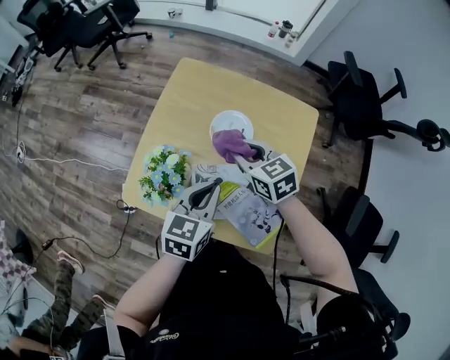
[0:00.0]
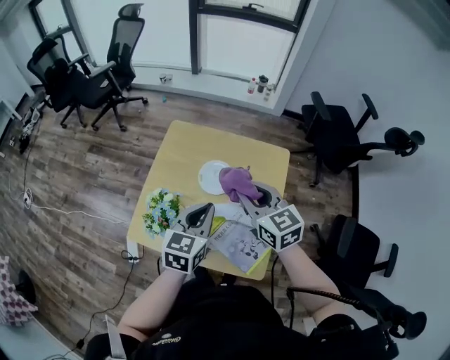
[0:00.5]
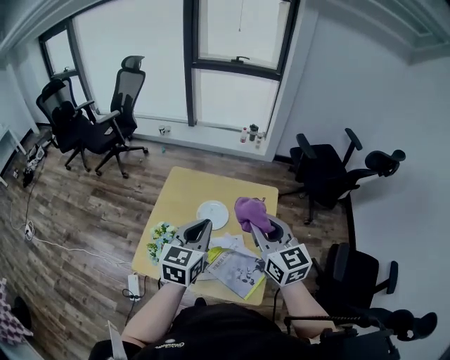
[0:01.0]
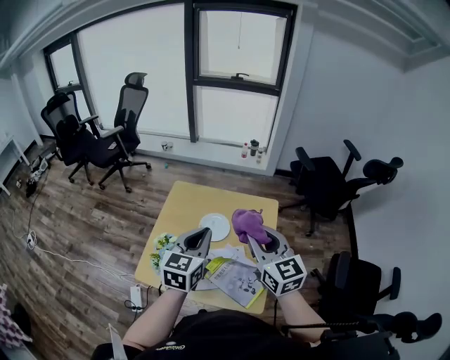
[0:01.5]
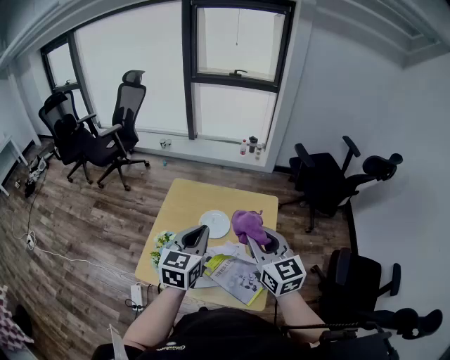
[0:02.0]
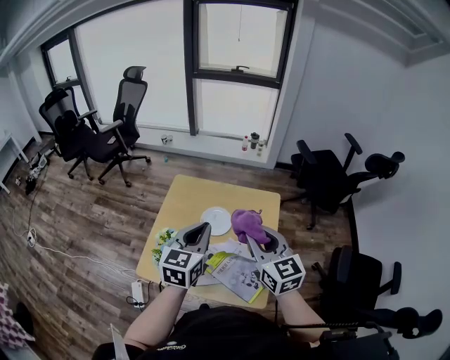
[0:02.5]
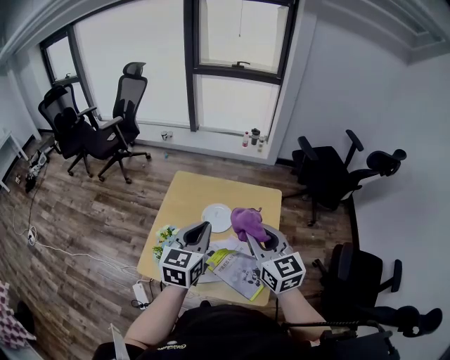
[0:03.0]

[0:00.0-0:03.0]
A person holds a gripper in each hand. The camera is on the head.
0:00.0 to 0:01.5: The left gripper heads upward, covering roughly 20 cm. The right gripper goes roughly 30 cm upward and backward, and rotates approximately 40 degrees.
0:01.5 to 0:03.0: The grippers stay close to where they were, moving slightly.

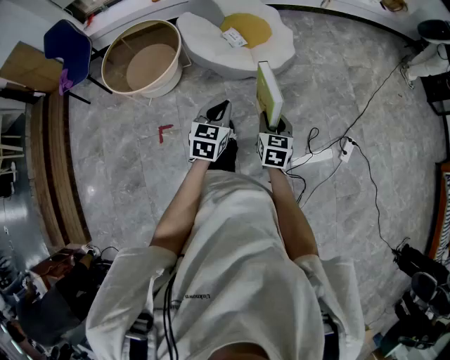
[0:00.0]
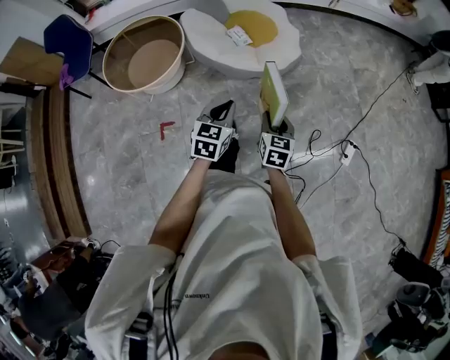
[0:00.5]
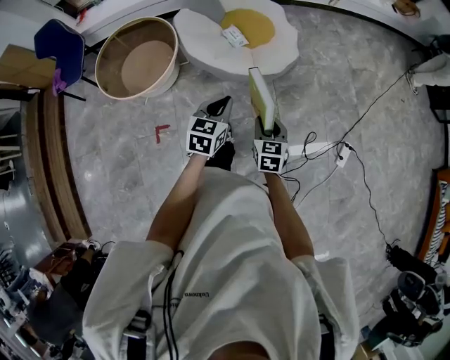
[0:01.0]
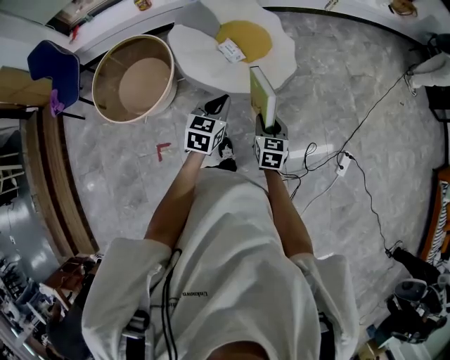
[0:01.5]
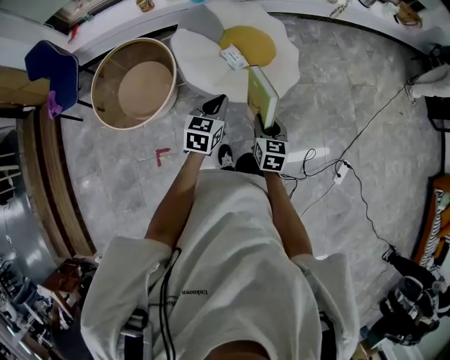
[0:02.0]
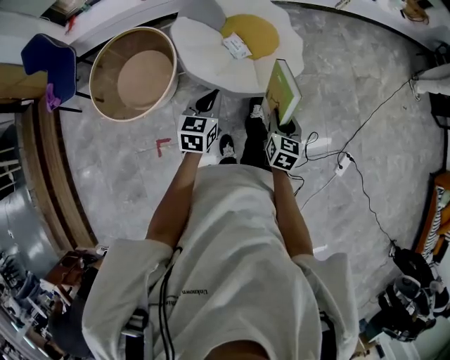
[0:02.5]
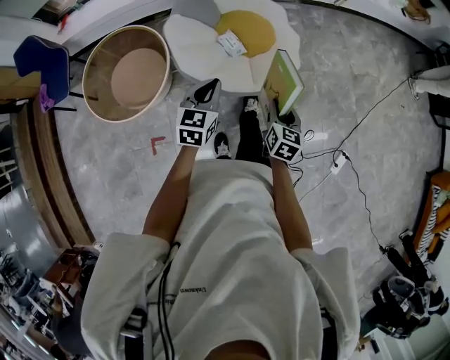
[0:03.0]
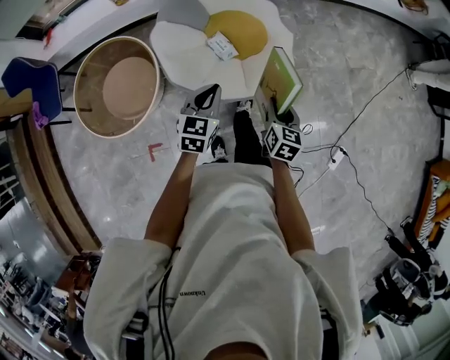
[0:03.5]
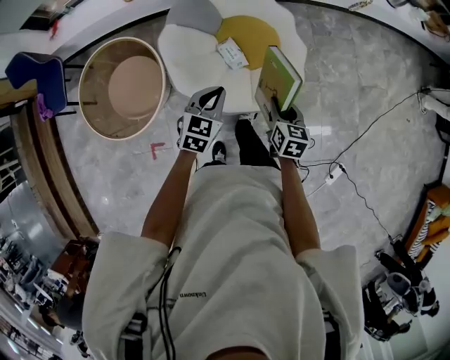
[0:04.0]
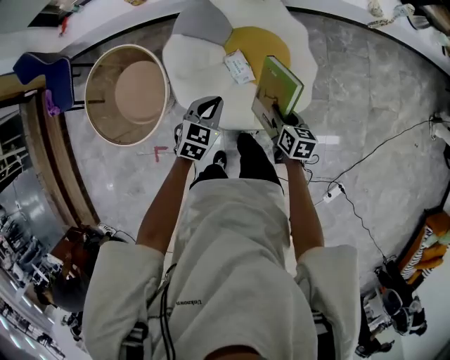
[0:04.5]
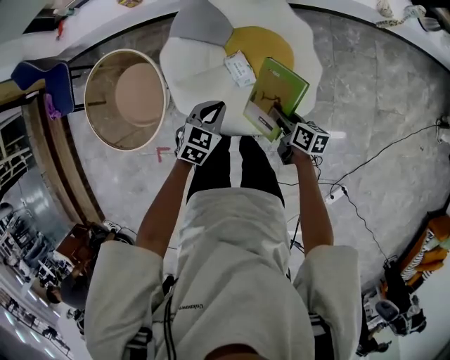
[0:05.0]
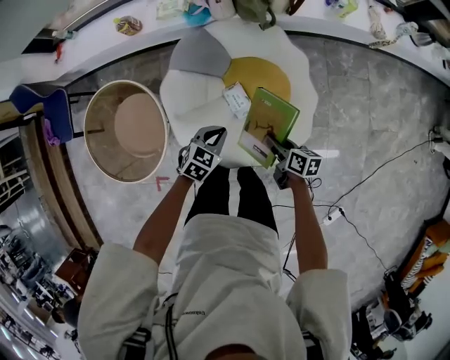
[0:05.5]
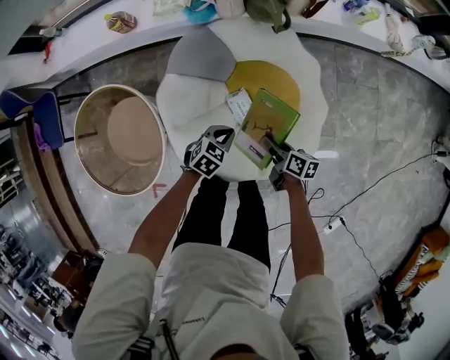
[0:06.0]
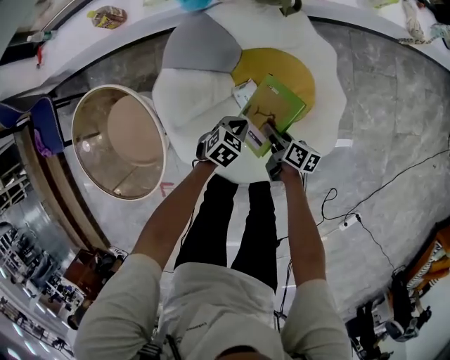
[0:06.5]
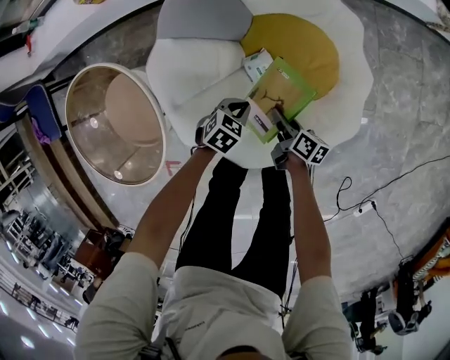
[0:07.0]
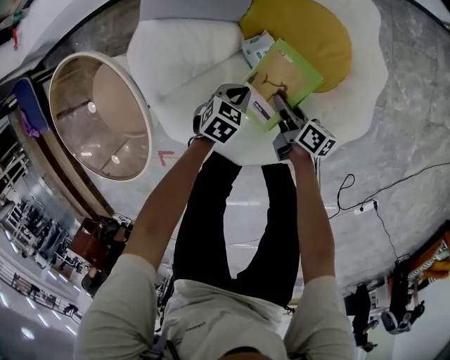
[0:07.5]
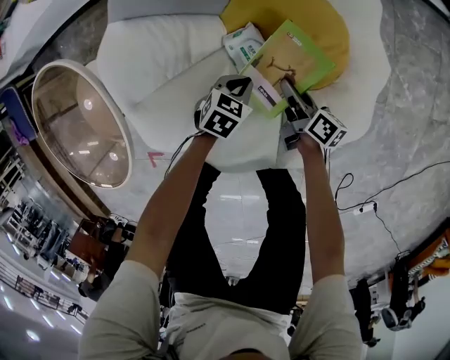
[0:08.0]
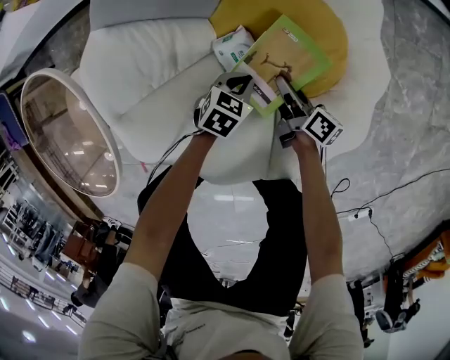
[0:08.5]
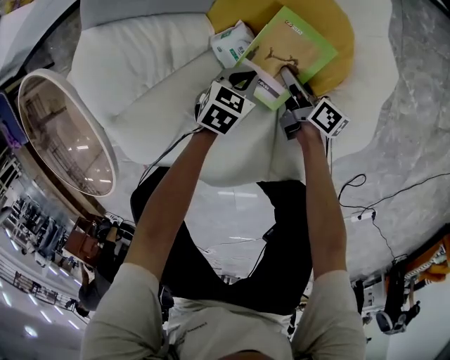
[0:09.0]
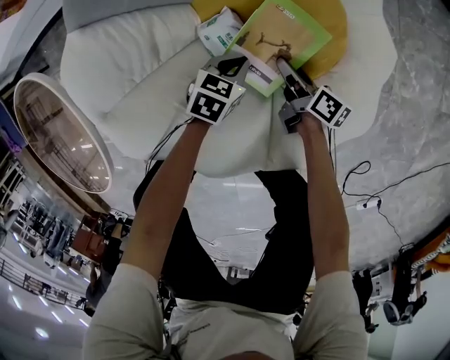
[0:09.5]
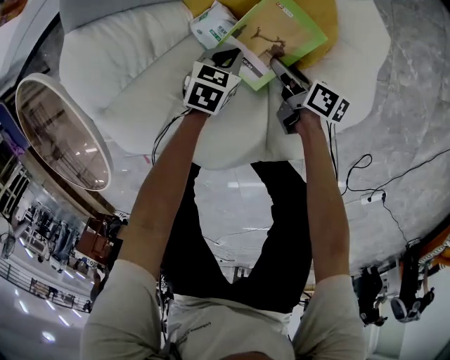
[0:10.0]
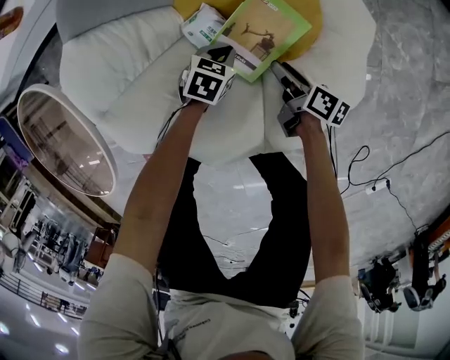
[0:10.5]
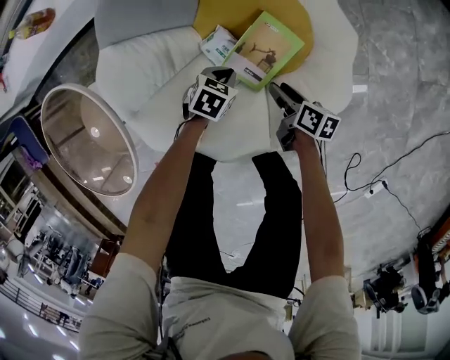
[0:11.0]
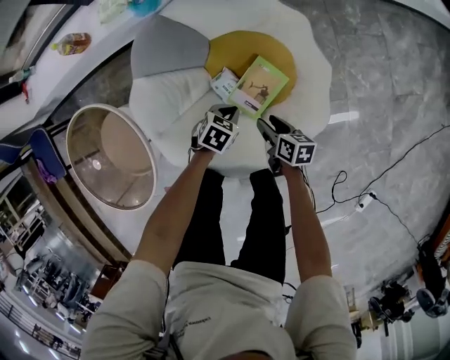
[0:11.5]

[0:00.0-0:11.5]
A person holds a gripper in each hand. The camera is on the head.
0:00.0 to 0:02.0: Both grippers move forward, approximately 30 cm.
0:02.0 to 0:04.0: Both grippers travel together forward, about 25 cm.
0:04.0 to 0:06.0: Both grippers move downward and forward, roughly 30 cm. The left gripper rotates about 30 degrees, while the right gripper changes its angle by roughly 40 degrees.
0:06.0 to 0:07.5: The two grippers go approximately 25 cm downward.
0:07.5 to 0:09.5: The two grippers go roughly 15 cm downward, to the right and forward.
0:09.5 to 0:11.5: The two grippers go approximately 25 cm upward. The right gripper rotates approximately 30 degrees.

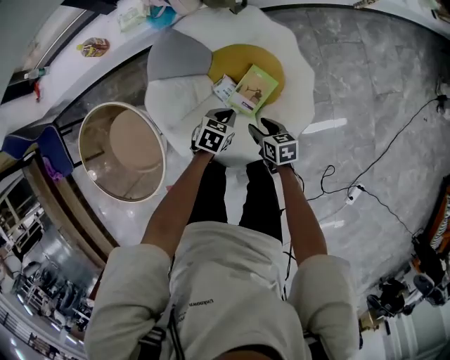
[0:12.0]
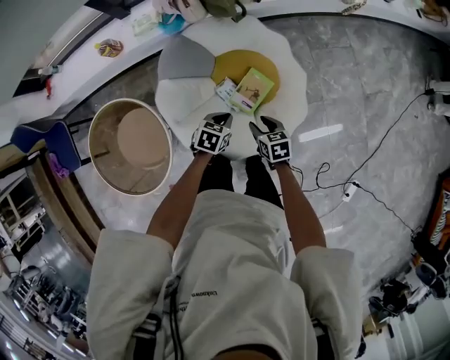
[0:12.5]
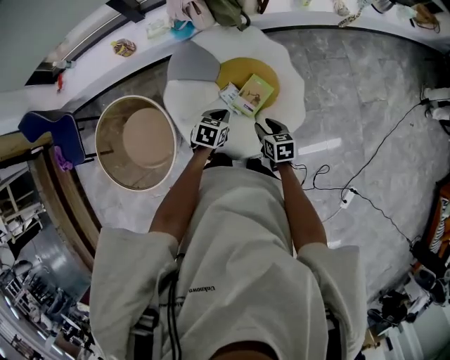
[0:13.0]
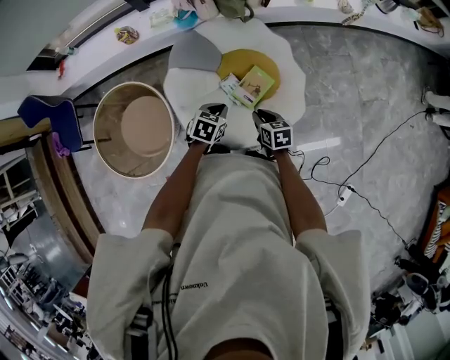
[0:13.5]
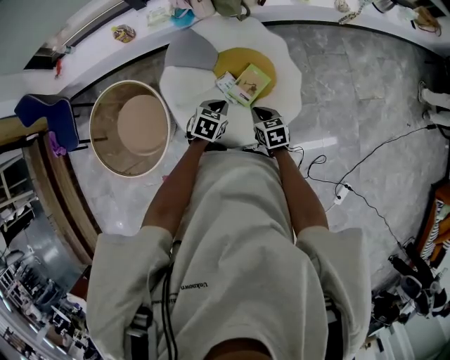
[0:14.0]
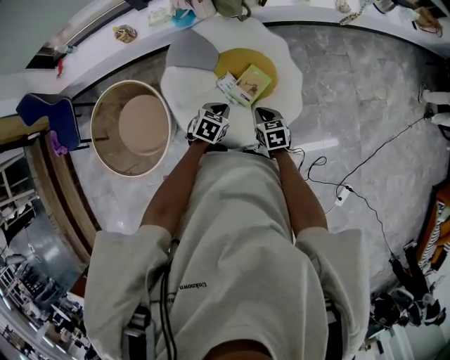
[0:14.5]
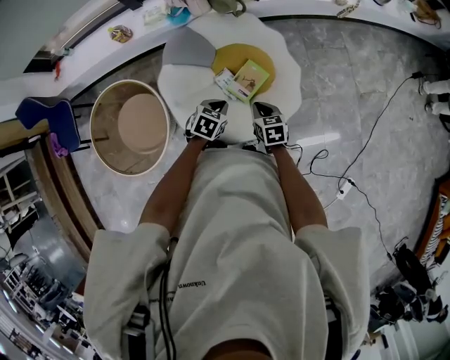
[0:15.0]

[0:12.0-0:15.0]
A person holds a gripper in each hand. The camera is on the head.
0:12.0 to 0:13.5: Both grippers move upward and backward, roughly 15 cm. The right gripper closes up.
0:13.5 to 0:15.0: The grippers move only a little.

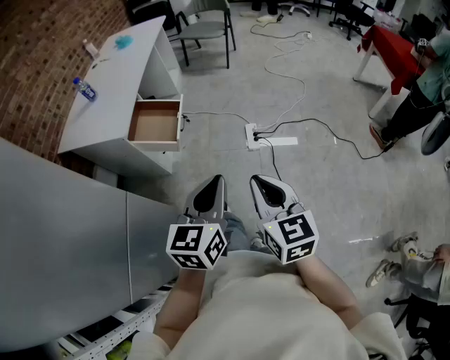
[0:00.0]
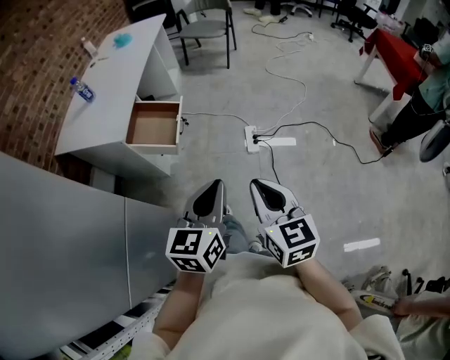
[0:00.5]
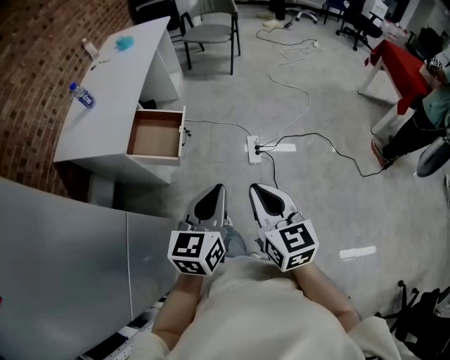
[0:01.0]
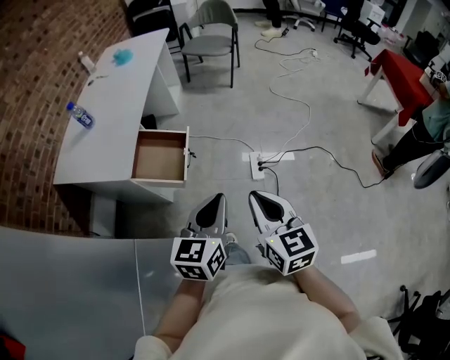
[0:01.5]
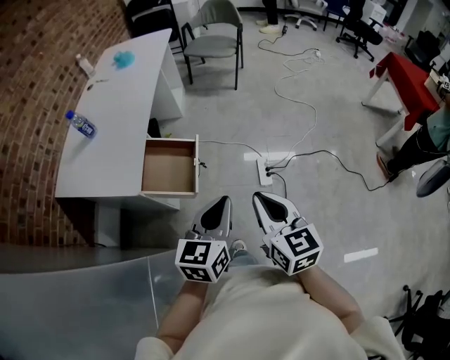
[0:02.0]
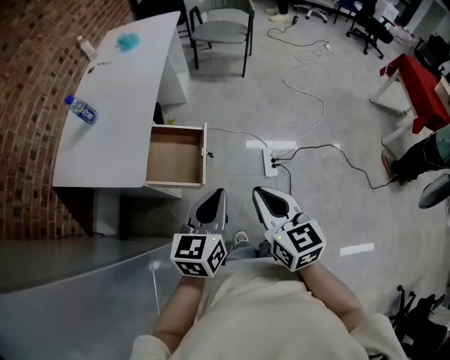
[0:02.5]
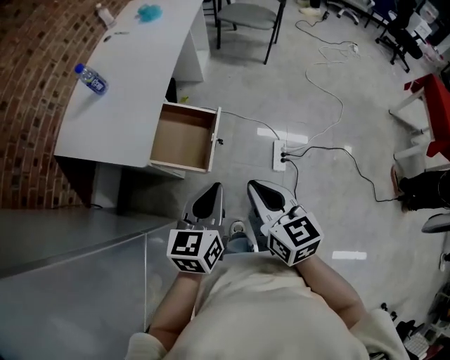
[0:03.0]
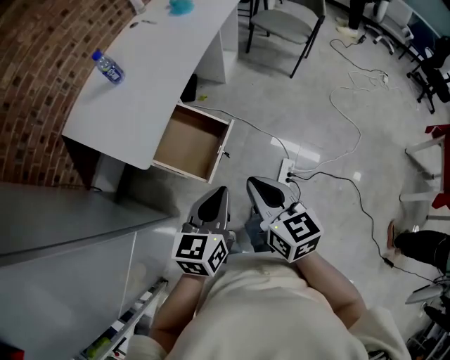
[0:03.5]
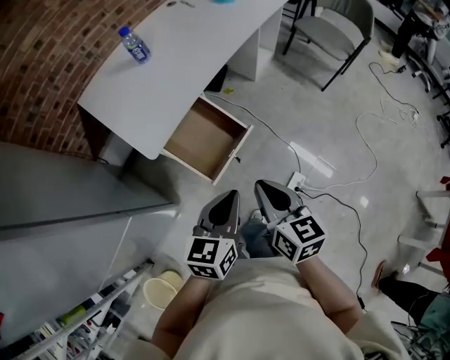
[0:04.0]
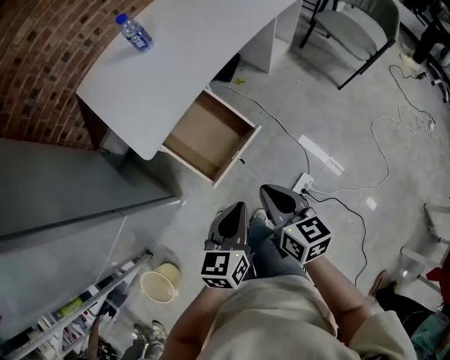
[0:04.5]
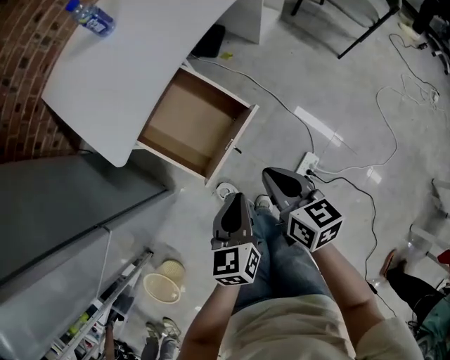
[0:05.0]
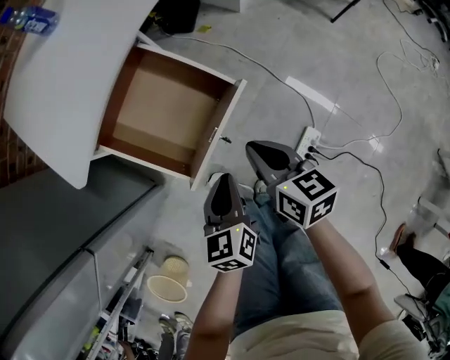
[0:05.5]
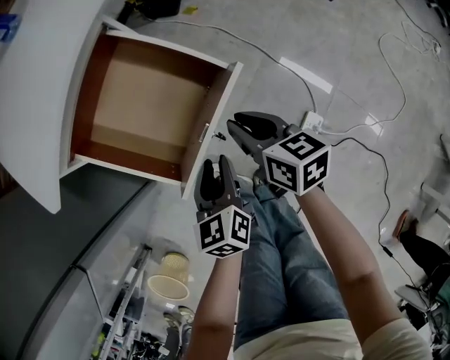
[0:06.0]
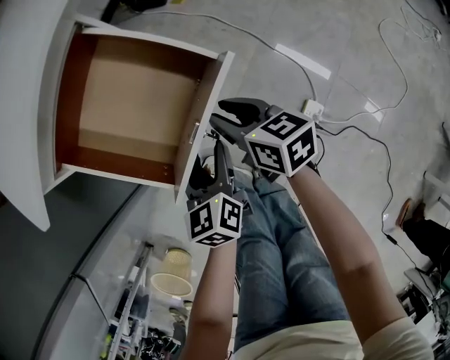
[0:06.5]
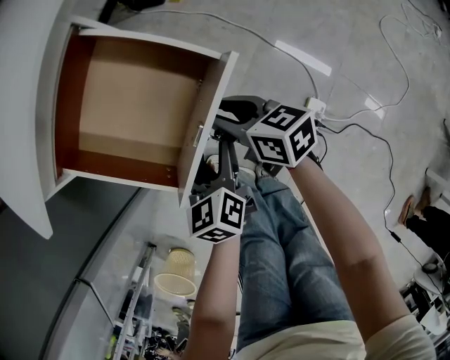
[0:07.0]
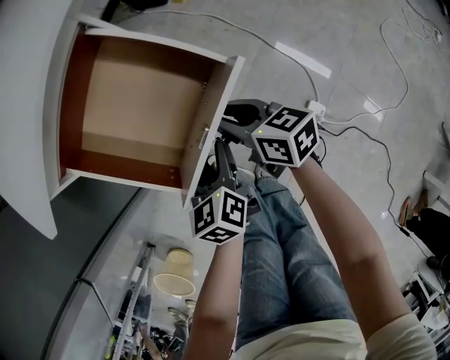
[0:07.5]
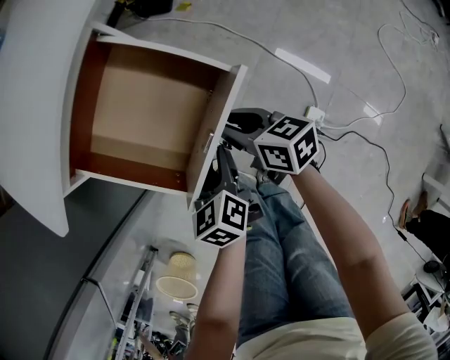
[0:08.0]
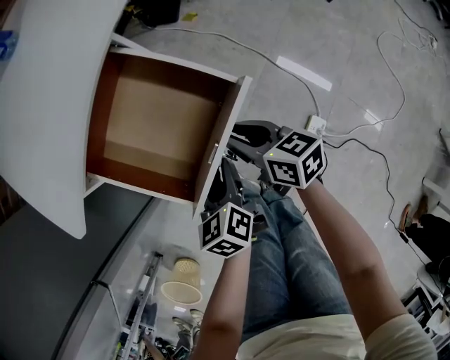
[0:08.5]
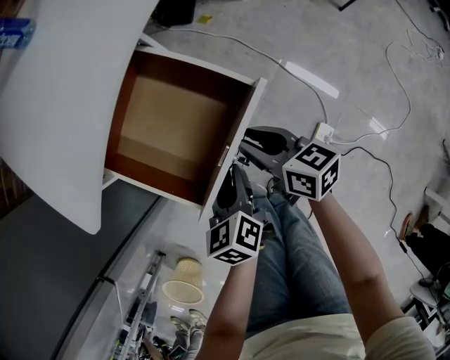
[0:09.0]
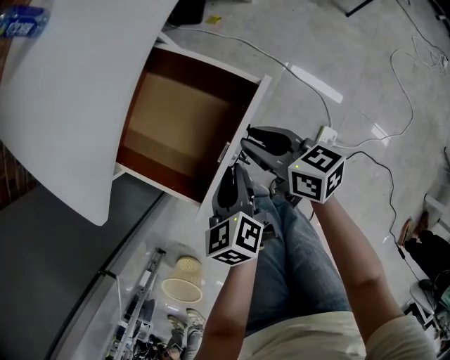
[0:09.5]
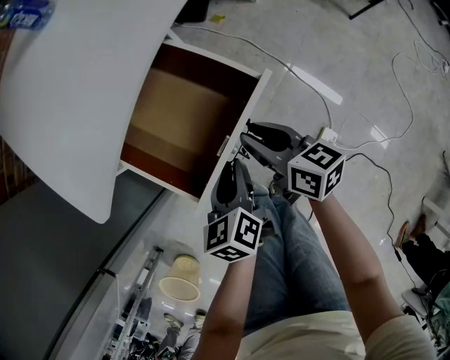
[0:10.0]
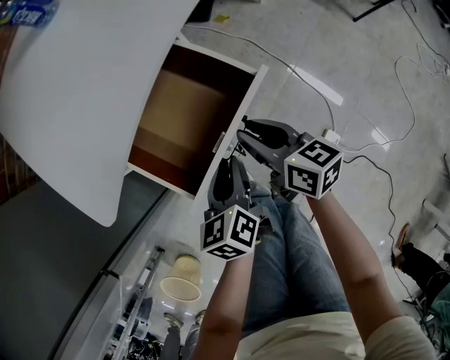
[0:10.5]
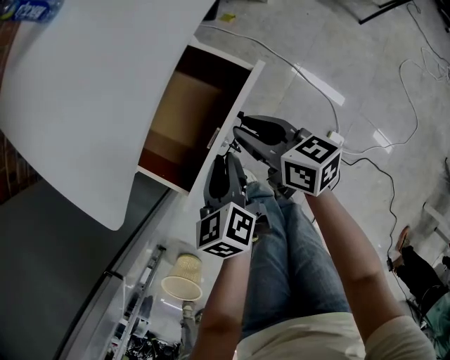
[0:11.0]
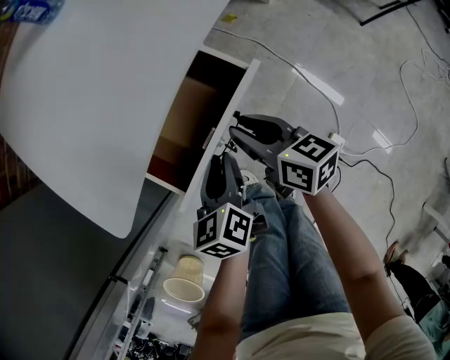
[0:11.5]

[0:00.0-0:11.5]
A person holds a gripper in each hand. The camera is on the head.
0:00.0 to 0:02.0: Both grippers travel together forward, some 25 cm.
0:02.0 to 0:04.0: The left gripper changes place by about 20 cm, and turns by approximately 40 degrees. The right gripper moves some 25 cm, and changes its angle by some 40 degrees.
0:04.0 to 0:06.0: The left gripper moves downward, approximately 40 cm, turns by some 30 degrees, and opens up. Meanwhile the right gripper goes some 40 cm downward and forward.
0:06.0 to 0:07.5: The left gripper shifts by roughly 5 cm, while the right gripper moves downward, some 5 cm.
0:07.5 to 0:09.5: Both grippers move upward, some 5 cm. The left gripper closes its fingers.
0:09.5 to 0:11.5: The grippers both shift forward by approximately 10 cm.
